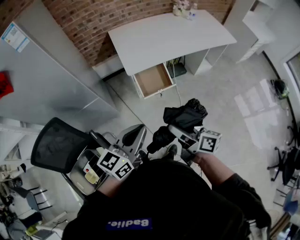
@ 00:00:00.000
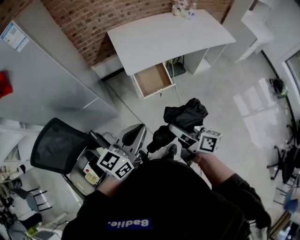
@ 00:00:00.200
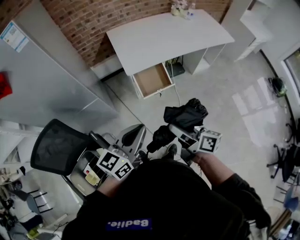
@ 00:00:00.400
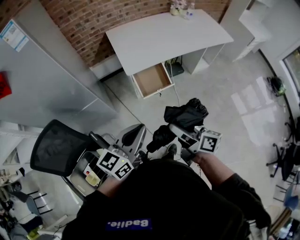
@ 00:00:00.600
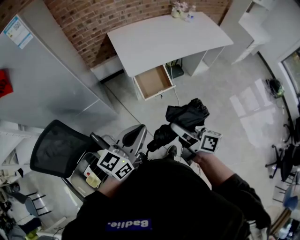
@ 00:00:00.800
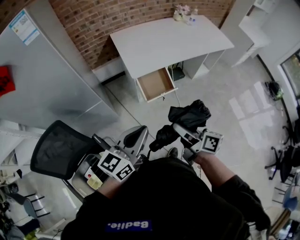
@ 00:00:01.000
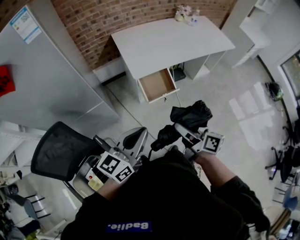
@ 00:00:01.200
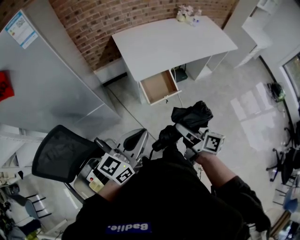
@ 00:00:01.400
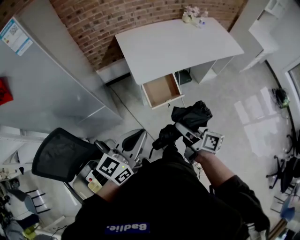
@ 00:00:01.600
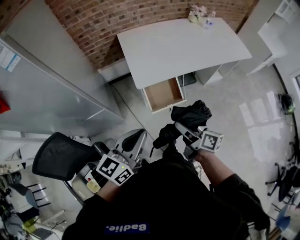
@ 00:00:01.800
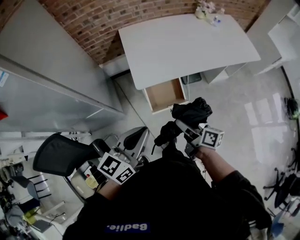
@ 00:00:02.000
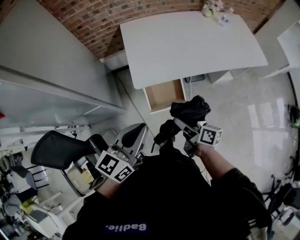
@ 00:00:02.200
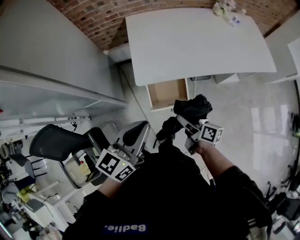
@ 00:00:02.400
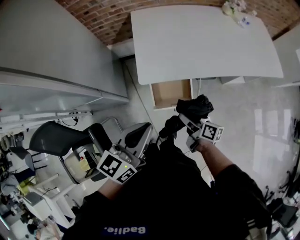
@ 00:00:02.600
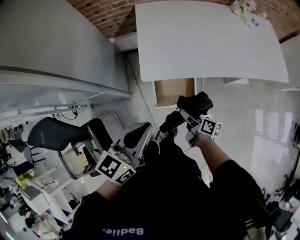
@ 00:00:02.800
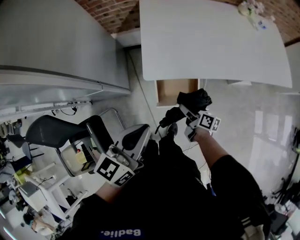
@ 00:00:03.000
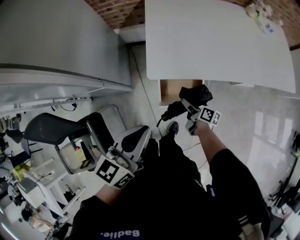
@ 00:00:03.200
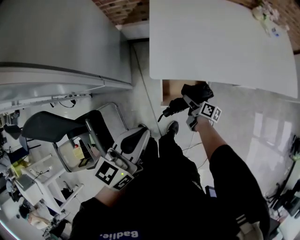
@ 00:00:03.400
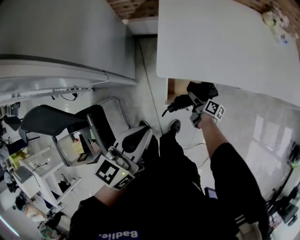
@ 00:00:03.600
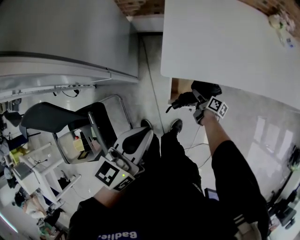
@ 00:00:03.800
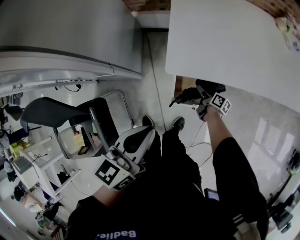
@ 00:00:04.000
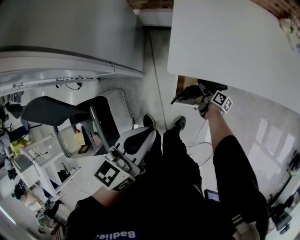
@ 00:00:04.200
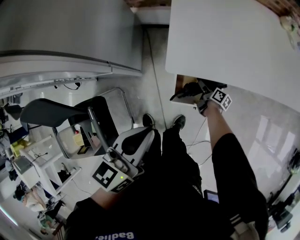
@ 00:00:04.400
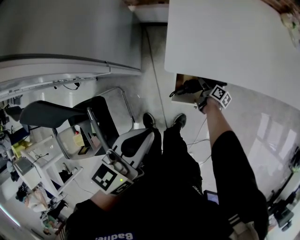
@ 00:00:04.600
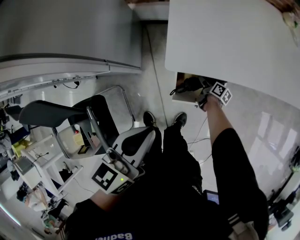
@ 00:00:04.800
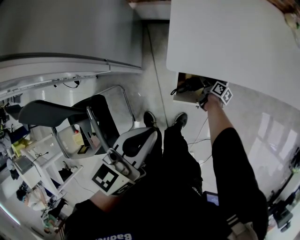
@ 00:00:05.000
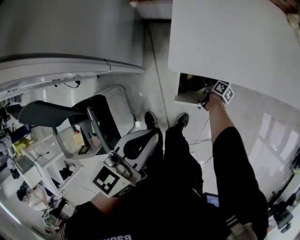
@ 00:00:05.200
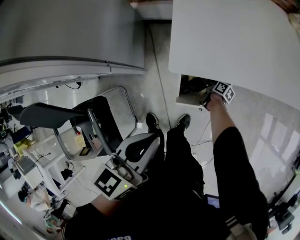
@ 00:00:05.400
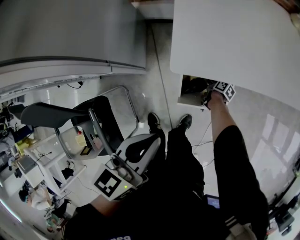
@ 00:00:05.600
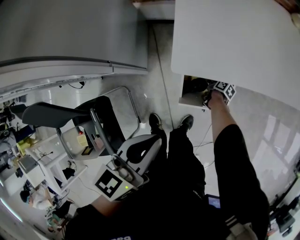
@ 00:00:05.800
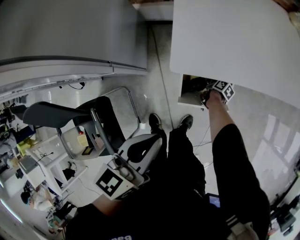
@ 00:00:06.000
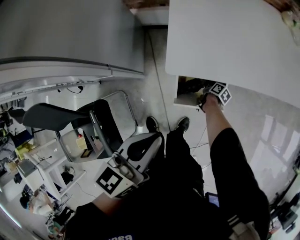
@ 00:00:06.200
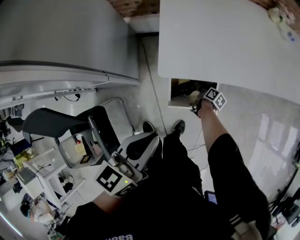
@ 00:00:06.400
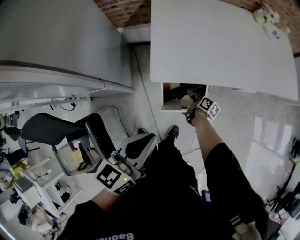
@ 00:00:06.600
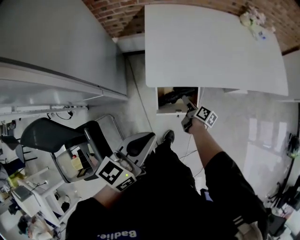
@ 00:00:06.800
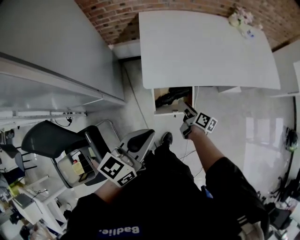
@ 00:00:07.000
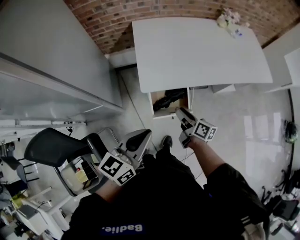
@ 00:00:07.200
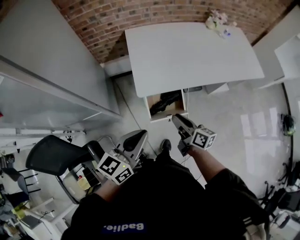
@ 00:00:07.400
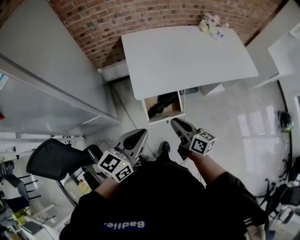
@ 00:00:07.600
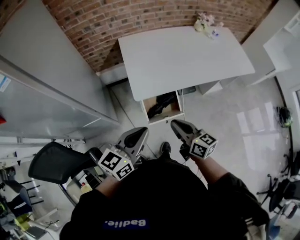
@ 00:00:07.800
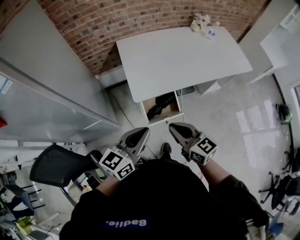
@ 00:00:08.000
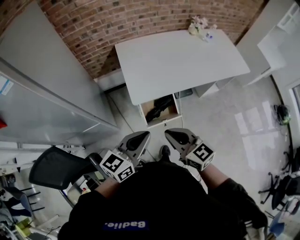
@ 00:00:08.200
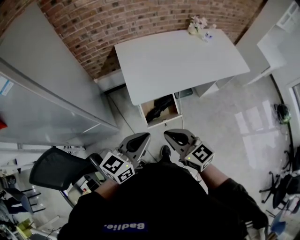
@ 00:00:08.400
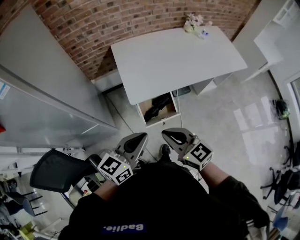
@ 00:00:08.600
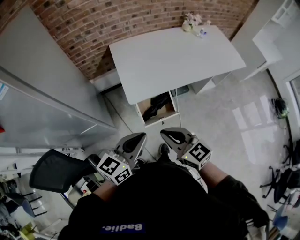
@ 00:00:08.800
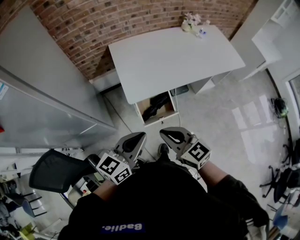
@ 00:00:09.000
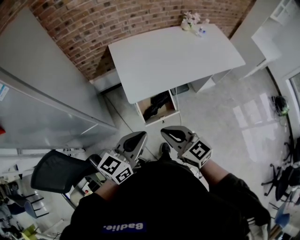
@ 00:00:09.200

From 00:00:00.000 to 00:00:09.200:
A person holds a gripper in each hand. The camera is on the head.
From 00:00:00.000 to 00:00:01.600: The left gripper heads forward and to the left, covering roughly 10 cm. Meanwhile the right gripper shifts approximately 10 cm forward.
From 00:00:01.600 to 00:00:03.000: The right gripper goes roughly 35 cm downward and forward, and turns by some 30 degrees. Meanwhile the left gripper is displaced forward and to the right by roughly 20 cm, and rotates about 20 degrees.
From 00:00:03.000 to 00:00:04.600: The left gripper heads downward, covering roughly 5 cm, while the right gripper travels downward and forward by approximately 25 cm.
From 00:00:06.200 to 00:00:07.600: The left gripper goes some 10 cm upward and backward, and turns by roughly 20 degrees, while the right gripper moves upward, about 50 cm, tips its fingers upward by some 40 degrees, and closes.
From 00:00:07.600 to 00:00:09.200: The right gripper heads upward and backward, covering approximately 10 cm, and swivels roughly 40 degrees.

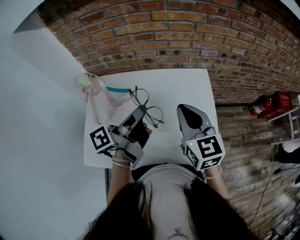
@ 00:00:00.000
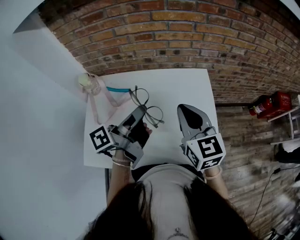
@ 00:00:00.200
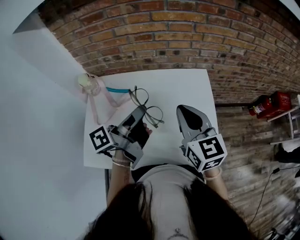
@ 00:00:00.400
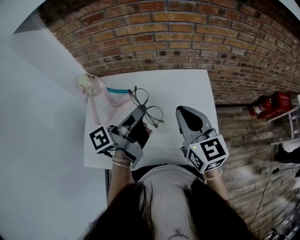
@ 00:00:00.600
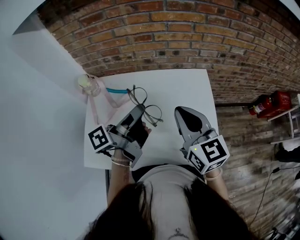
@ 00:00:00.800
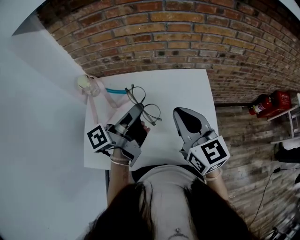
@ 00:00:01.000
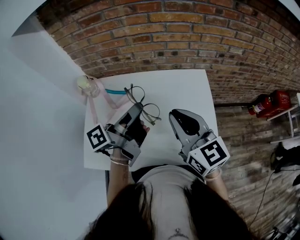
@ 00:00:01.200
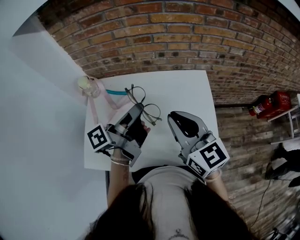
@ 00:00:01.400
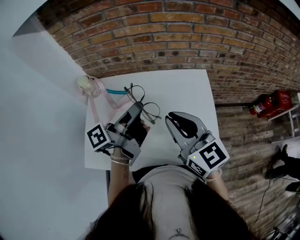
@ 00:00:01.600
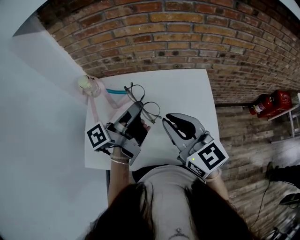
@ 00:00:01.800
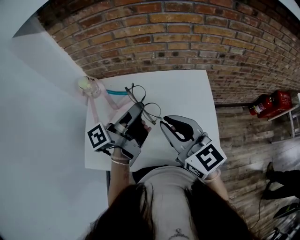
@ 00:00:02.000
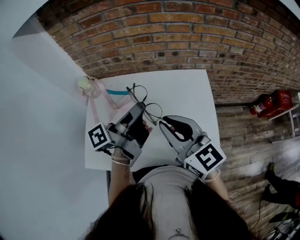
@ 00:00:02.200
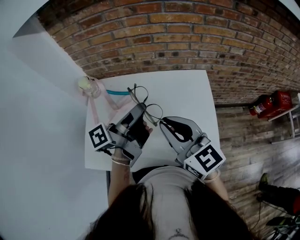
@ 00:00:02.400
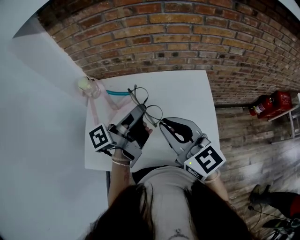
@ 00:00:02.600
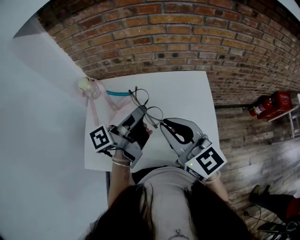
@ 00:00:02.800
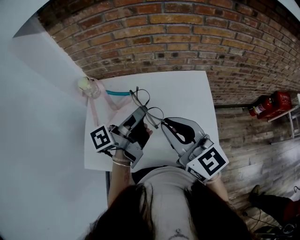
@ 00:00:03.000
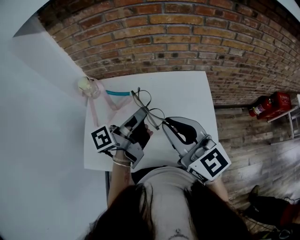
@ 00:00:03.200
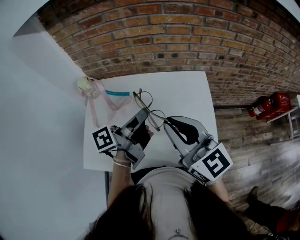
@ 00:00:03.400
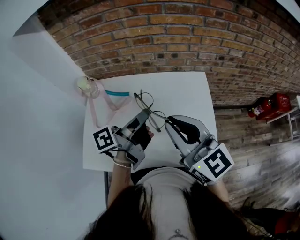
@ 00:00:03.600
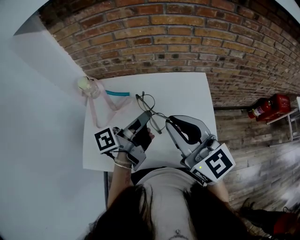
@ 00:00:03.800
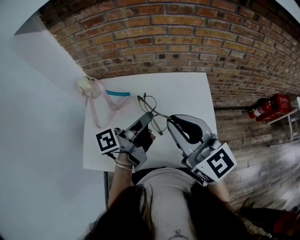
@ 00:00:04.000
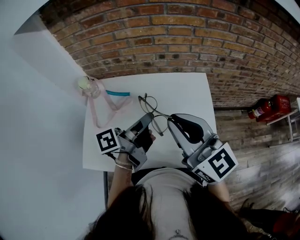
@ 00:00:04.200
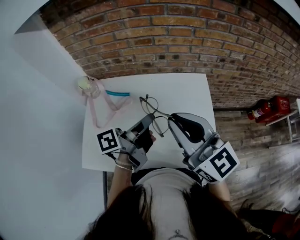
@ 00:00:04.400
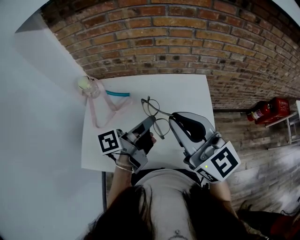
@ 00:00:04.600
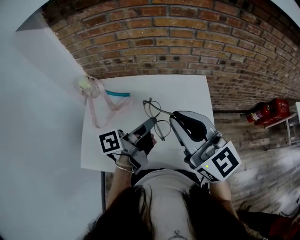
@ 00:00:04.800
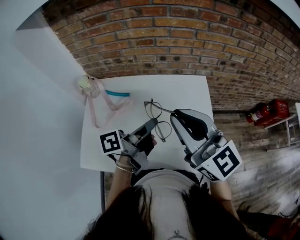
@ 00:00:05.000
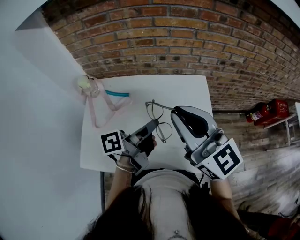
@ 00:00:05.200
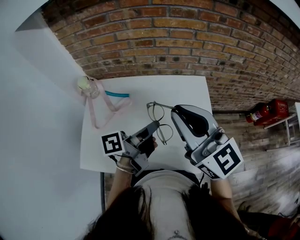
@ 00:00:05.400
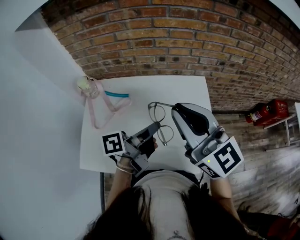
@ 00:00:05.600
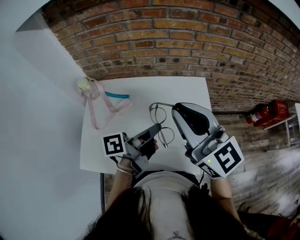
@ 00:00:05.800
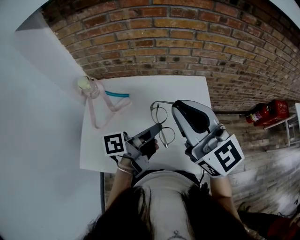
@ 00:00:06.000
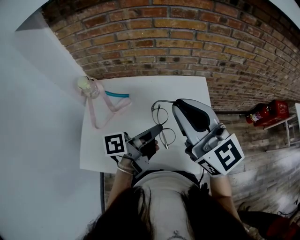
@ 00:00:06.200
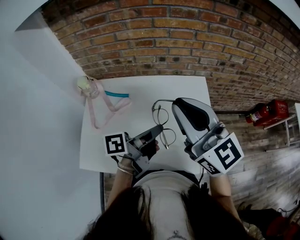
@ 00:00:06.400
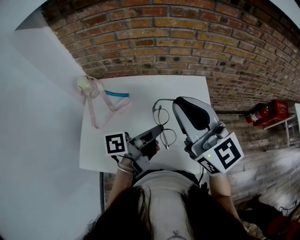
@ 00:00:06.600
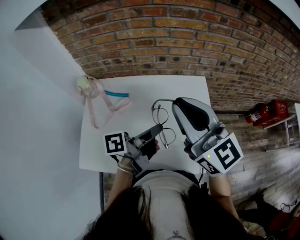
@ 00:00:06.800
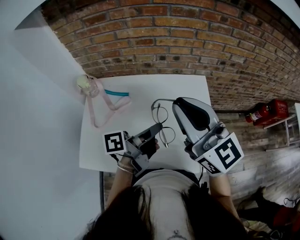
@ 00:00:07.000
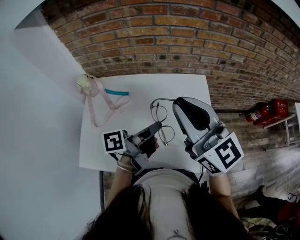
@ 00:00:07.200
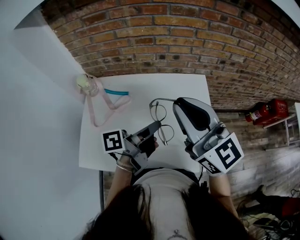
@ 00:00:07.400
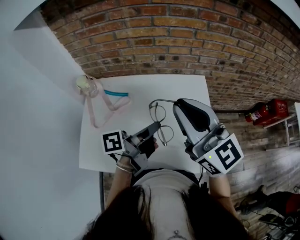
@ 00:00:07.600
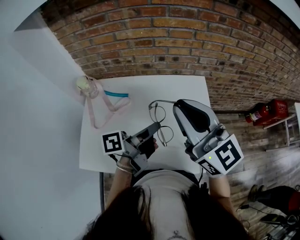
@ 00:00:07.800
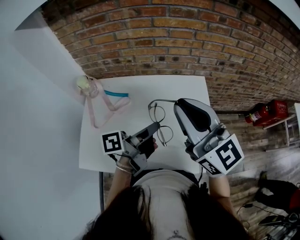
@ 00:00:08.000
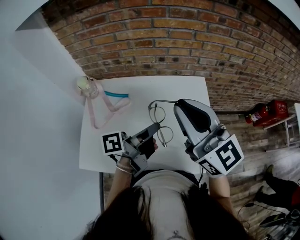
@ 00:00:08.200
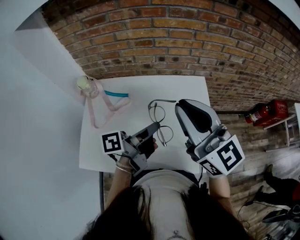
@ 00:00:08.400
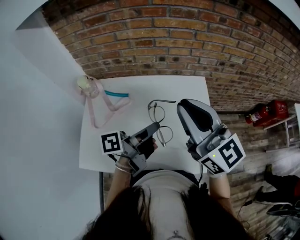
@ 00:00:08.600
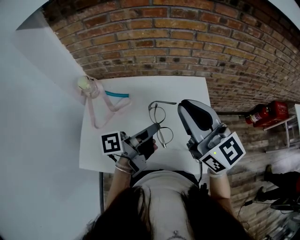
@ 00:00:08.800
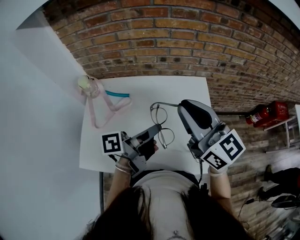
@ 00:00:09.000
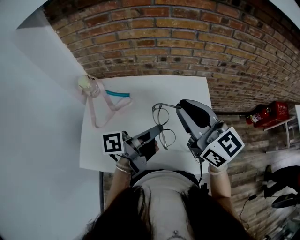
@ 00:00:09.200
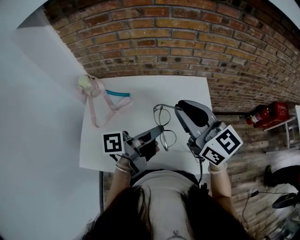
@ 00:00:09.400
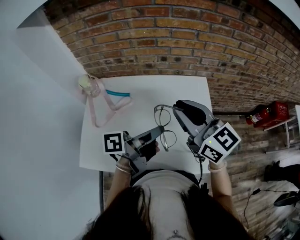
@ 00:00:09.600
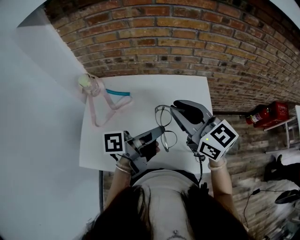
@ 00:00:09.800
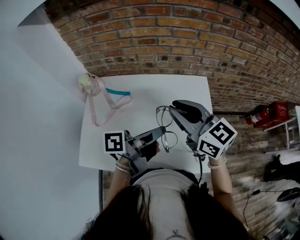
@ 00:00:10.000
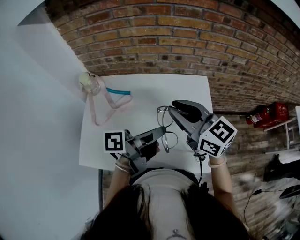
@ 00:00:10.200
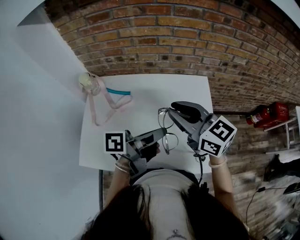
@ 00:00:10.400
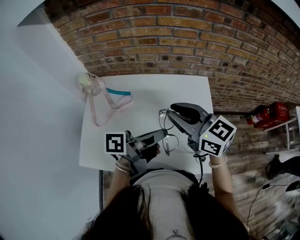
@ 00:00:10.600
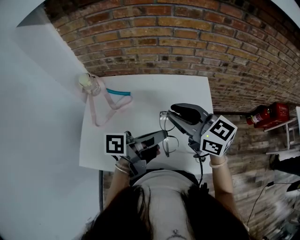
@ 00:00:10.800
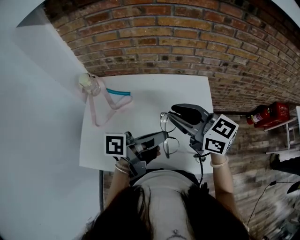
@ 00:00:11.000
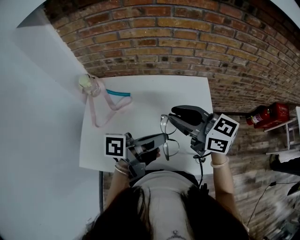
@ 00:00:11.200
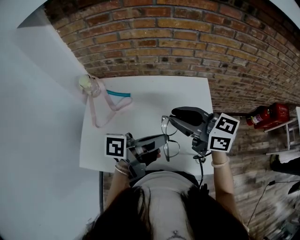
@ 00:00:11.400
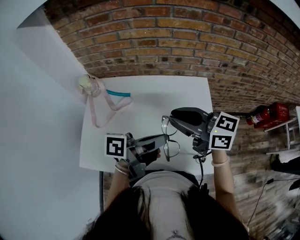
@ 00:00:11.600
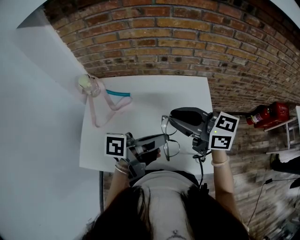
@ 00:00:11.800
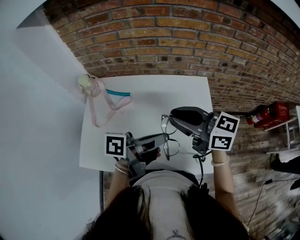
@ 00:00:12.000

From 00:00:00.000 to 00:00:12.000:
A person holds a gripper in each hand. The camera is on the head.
From 00:00:00.000 to 00:00:01.600: The right gripper moves some 5 cm.
From 00:00:09.000 to 00:00:10.400: The right gripper heads downward, covering approximately 5 cm.

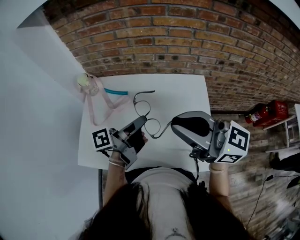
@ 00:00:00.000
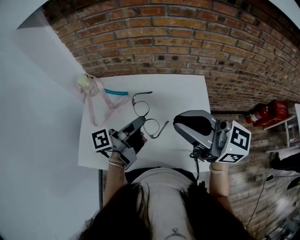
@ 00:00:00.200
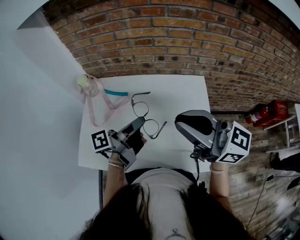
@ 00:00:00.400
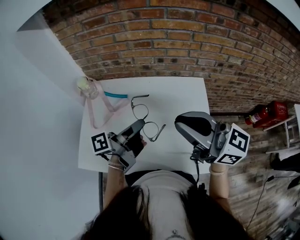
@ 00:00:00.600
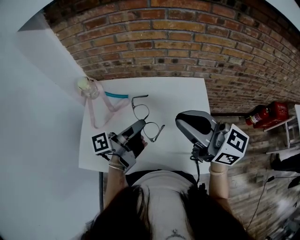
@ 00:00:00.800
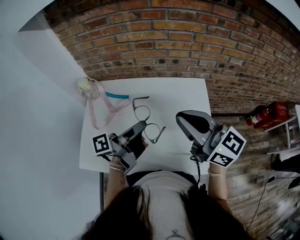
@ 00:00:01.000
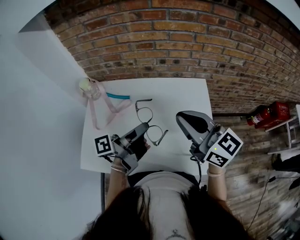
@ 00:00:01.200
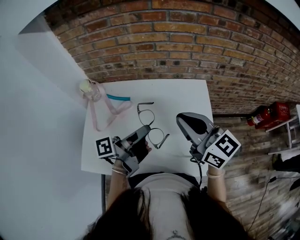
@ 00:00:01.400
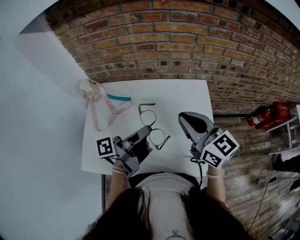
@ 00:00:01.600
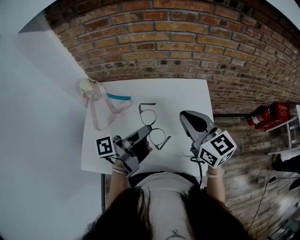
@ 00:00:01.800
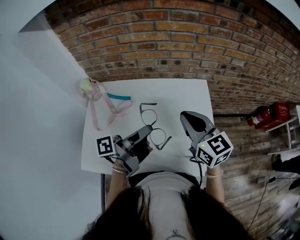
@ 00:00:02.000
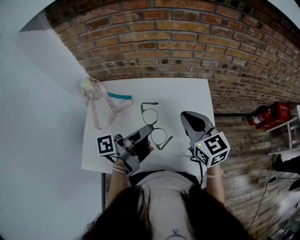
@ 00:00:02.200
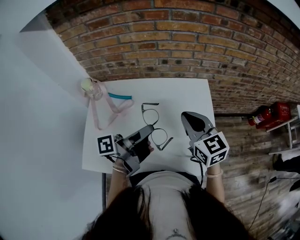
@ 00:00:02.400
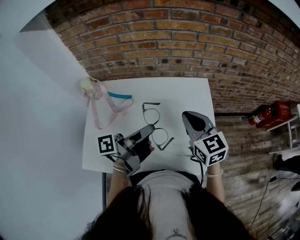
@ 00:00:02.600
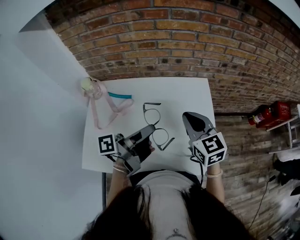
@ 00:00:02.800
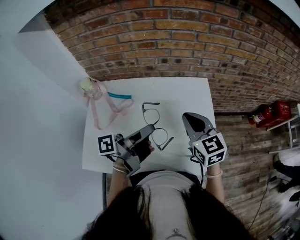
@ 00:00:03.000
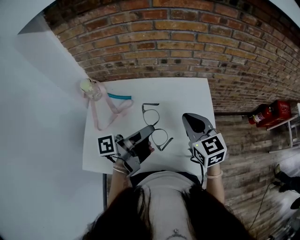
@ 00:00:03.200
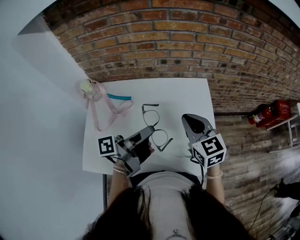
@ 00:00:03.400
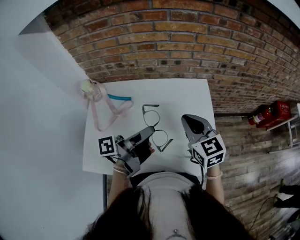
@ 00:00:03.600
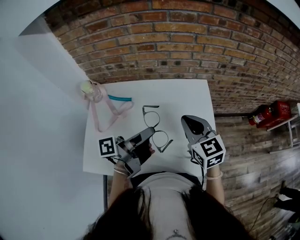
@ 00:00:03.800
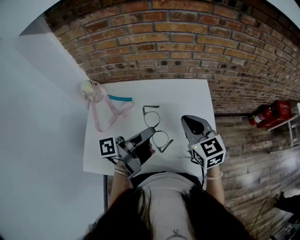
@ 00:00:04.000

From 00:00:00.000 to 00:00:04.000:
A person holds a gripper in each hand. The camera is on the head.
From 00:00:00.000 to 00:00:01.400: The right gripper is displaced downward by some 5 cm, and rotates roughly 20 degrees.
From 00:00:01.400 to 00:00:02.600: The right gripper moves downward, roughly 10 cm, and rotates approximately 20 degrees.
